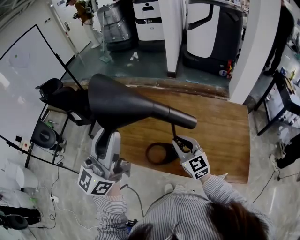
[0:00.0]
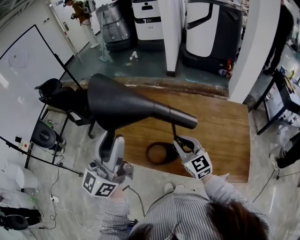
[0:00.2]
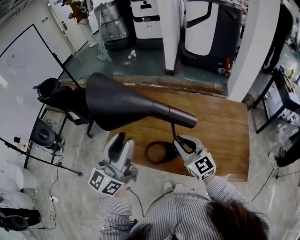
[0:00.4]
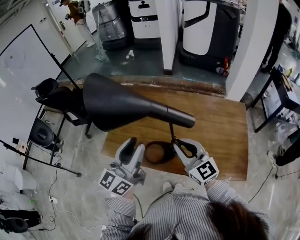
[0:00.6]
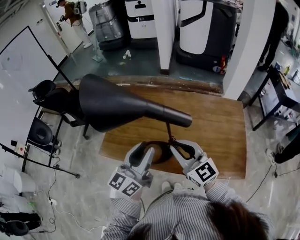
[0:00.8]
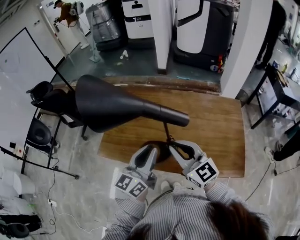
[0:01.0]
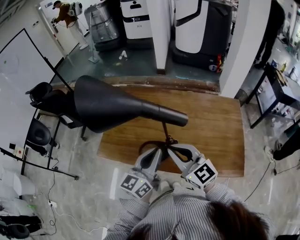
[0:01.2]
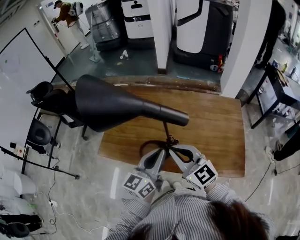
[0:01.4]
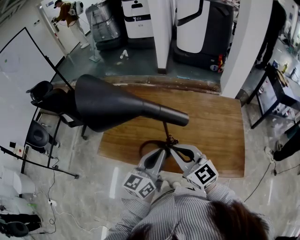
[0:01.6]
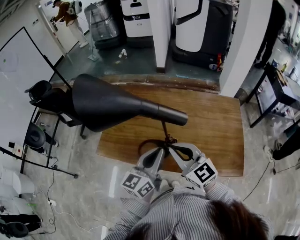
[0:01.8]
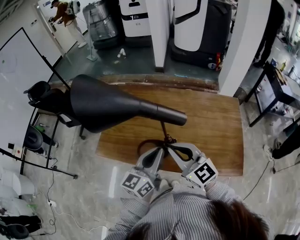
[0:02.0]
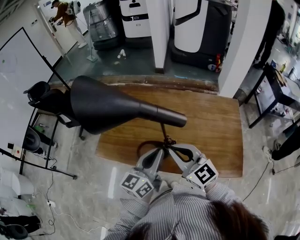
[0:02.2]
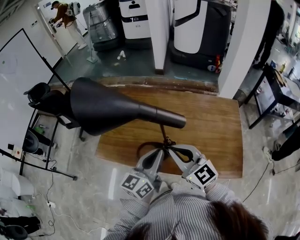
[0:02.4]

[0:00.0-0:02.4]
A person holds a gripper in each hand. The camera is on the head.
0:00.0 to 0:01.2: The left gripper heads downward and to the right, covering approximately 25 cm, and turns by roughly 30 degrees, while the right gripper is displaced backward and upward by some 10 cm.
0:01.2 to 0:02.4: The grippers stay close to where they were, moving slightly.

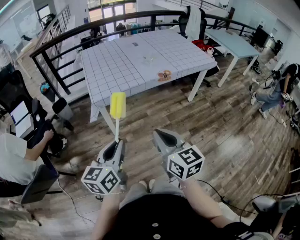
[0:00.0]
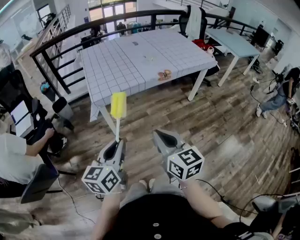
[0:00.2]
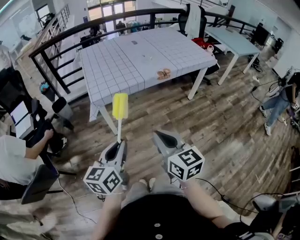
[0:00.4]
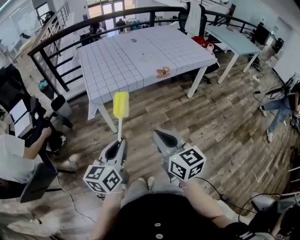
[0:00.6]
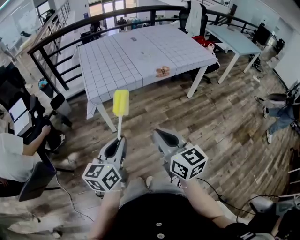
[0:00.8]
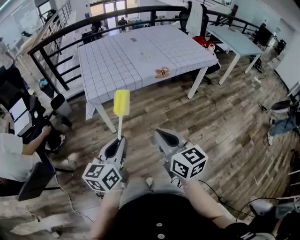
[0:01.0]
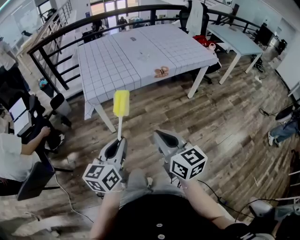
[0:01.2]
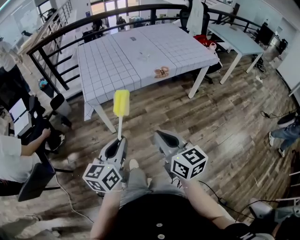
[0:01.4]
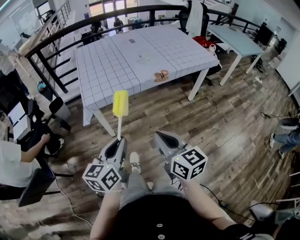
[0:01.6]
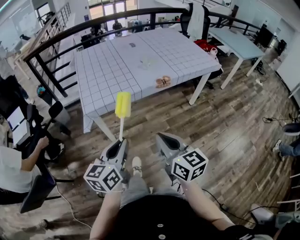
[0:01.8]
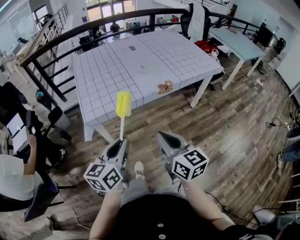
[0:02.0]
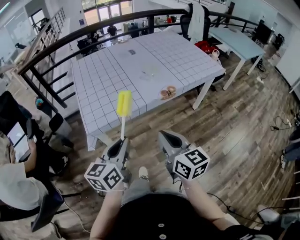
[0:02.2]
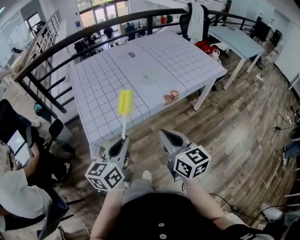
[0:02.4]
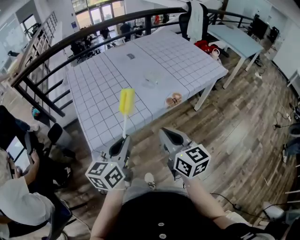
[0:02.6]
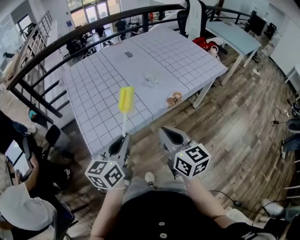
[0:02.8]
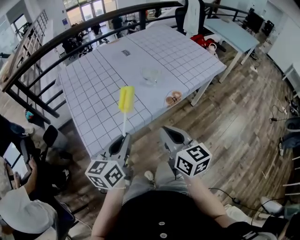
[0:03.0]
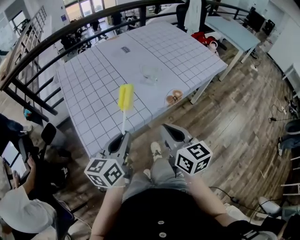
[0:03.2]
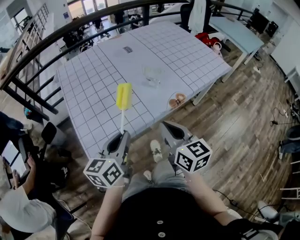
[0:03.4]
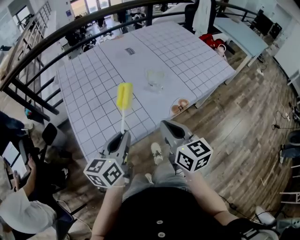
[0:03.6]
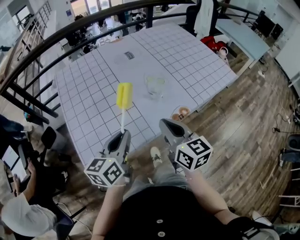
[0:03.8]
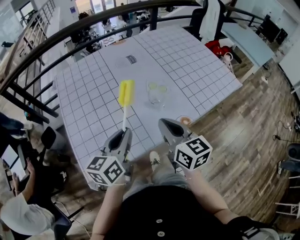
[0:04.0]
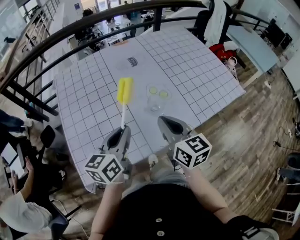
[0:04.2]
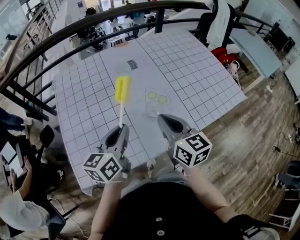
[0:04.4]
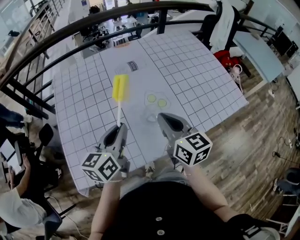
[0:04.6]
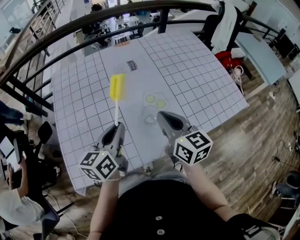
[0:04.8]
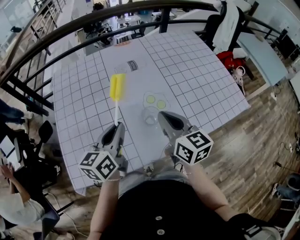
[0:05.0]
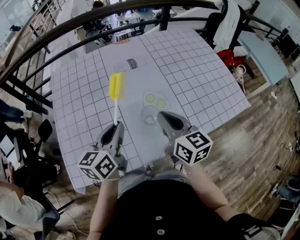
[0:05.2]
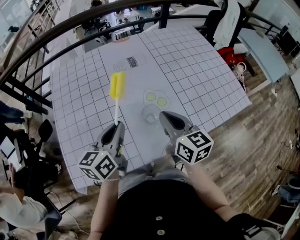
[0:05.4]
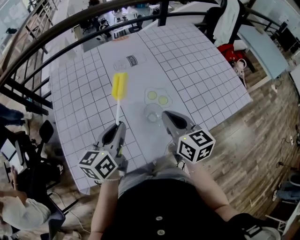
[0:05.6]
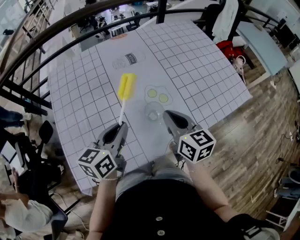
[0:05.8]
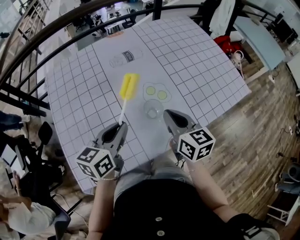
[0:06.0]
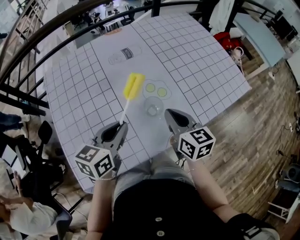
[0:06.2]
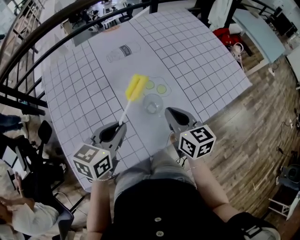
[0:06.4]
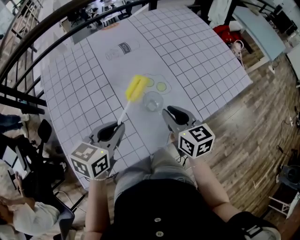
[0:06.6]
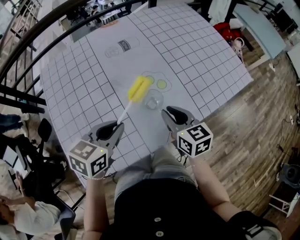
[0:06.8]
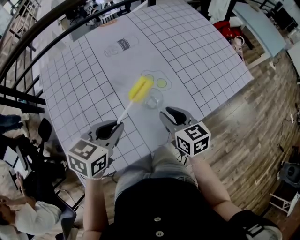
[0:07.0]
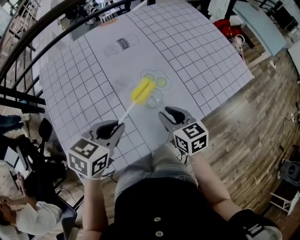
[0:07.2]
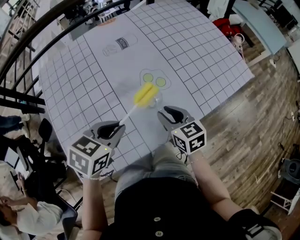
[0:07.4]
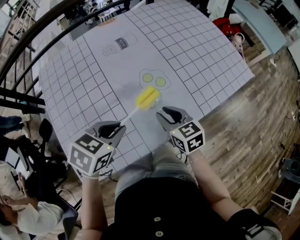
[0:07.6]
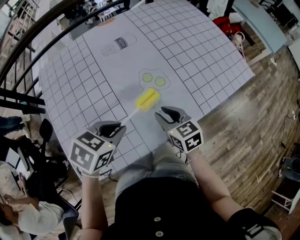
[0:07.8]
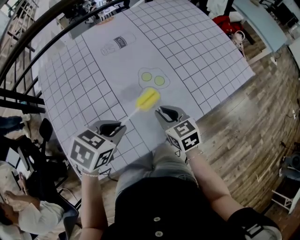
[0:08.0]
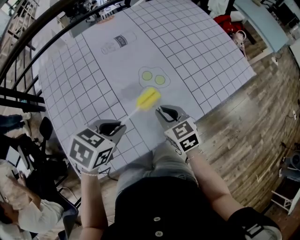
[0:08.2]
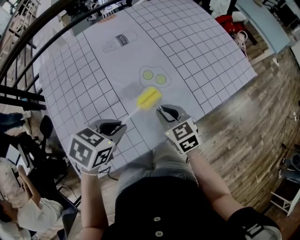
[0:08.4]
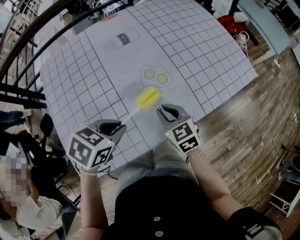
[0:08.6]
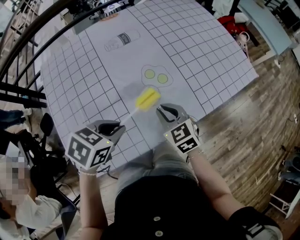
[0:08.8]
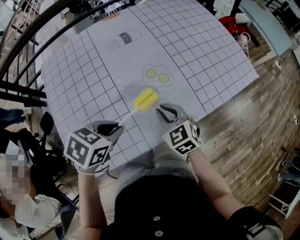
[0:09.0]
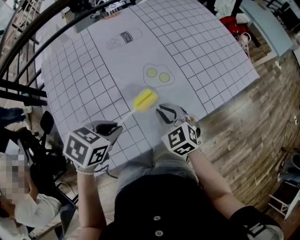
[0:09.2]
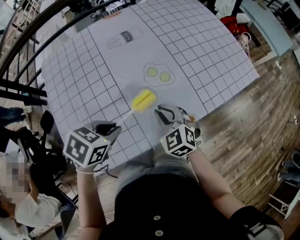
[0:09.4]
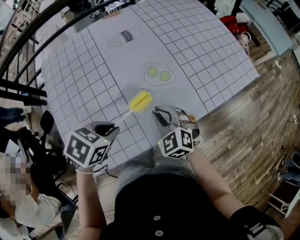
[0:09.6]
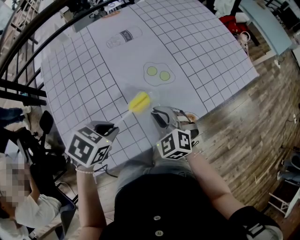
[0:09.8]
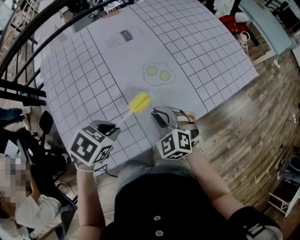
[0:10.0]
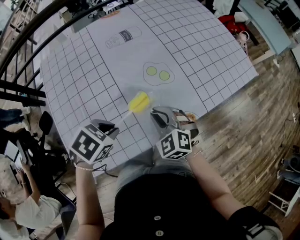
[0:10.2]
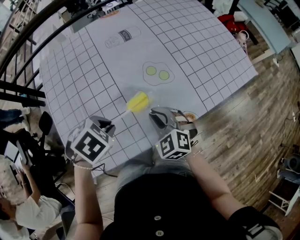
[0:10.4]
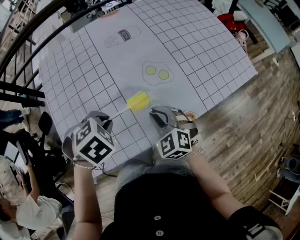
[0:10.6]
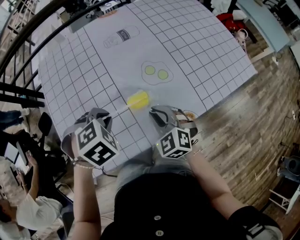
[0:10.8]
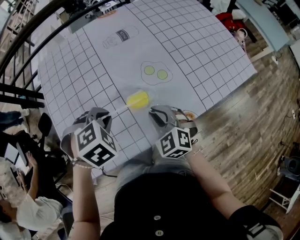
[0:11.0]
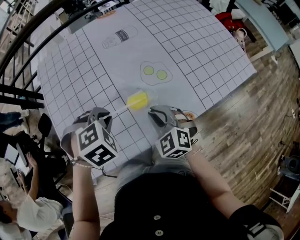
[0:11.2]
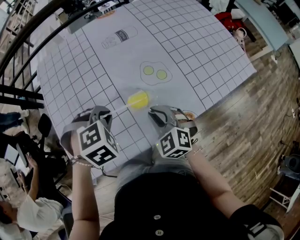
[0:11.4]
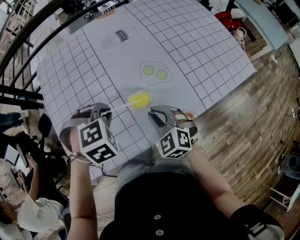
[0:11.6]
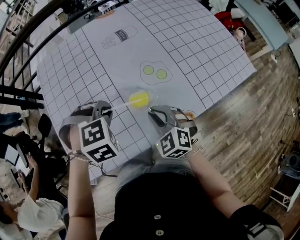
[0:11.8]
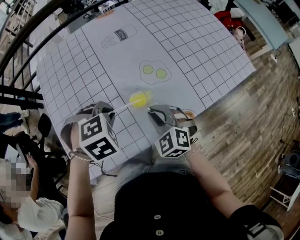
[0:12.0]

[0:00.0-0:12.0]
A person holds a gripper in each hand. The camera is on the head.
0:00.0 to 0:01.6: Both grippers travel together forward and to the right, roughly 10 cm.
0:01.6 to 0:03.0: Both grippers travel together forward, some 30 cm.
0:03.0 to 0:04.4: Both grippers travel together forward, approximately 25 cm.
0:04.4 to 0:06.0: The right gripper ends up approximately 10 cm from where it was.
0:06.0 to 0:07.6: The left gripper turns by about 40 degrees. The right gripper heads downward, covering about 10 cm, and opens up.
0:07.6 to 0:09.0: The right gripper rotates about 30 degrees.
0:09.0 to 0:10.4: The left gripper changes its angle by approximately 20 degrees.
0:10.4 to 0:12.0: The left gripper rotates about 30 degrees.

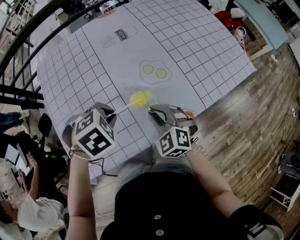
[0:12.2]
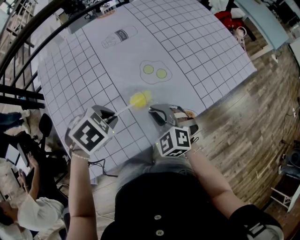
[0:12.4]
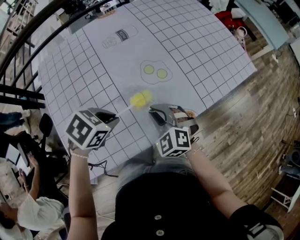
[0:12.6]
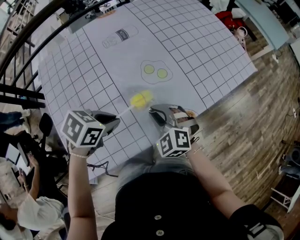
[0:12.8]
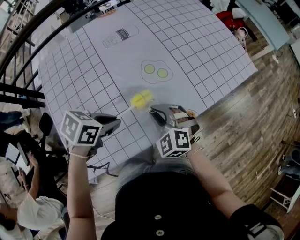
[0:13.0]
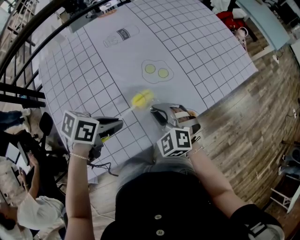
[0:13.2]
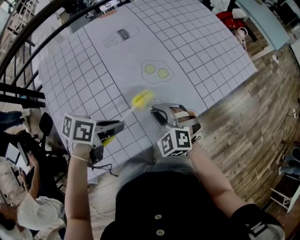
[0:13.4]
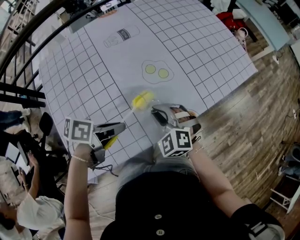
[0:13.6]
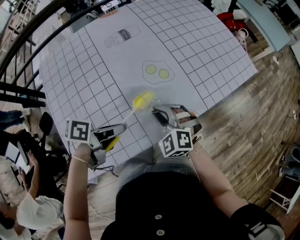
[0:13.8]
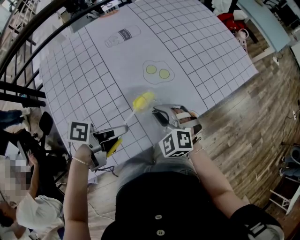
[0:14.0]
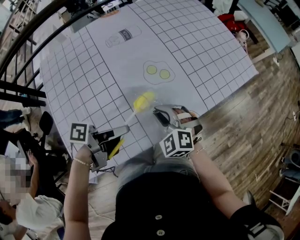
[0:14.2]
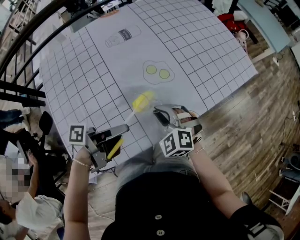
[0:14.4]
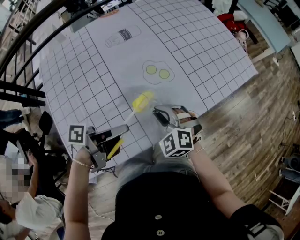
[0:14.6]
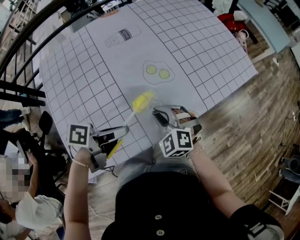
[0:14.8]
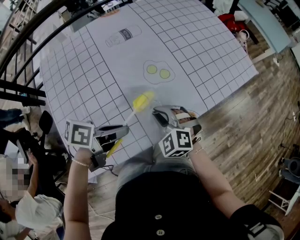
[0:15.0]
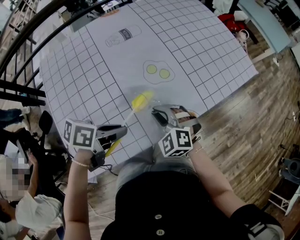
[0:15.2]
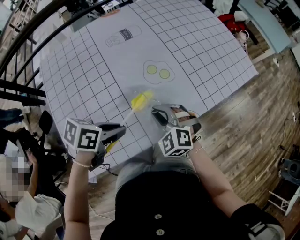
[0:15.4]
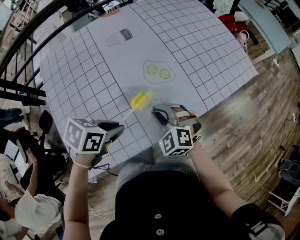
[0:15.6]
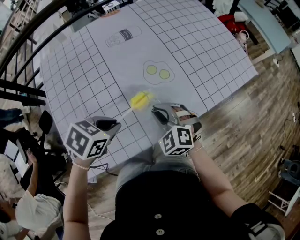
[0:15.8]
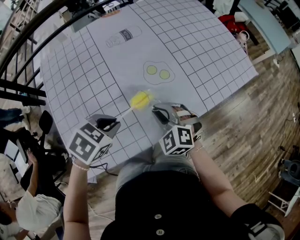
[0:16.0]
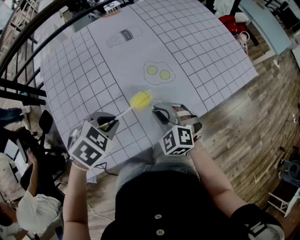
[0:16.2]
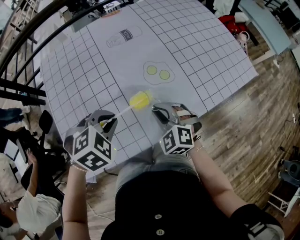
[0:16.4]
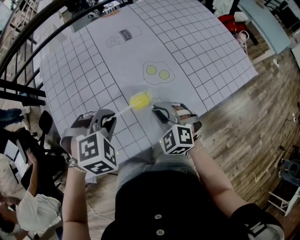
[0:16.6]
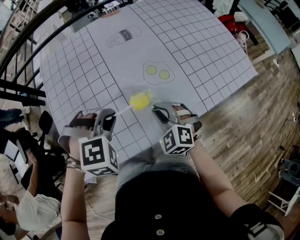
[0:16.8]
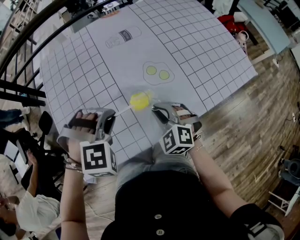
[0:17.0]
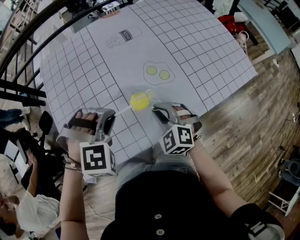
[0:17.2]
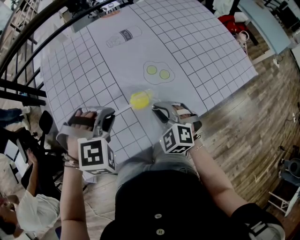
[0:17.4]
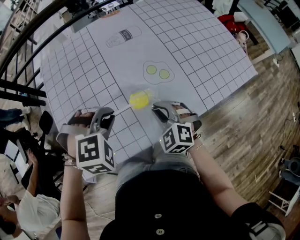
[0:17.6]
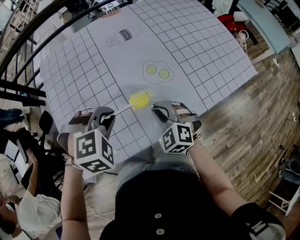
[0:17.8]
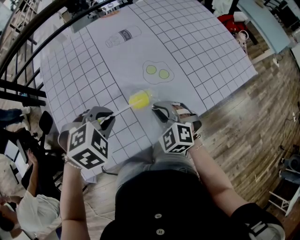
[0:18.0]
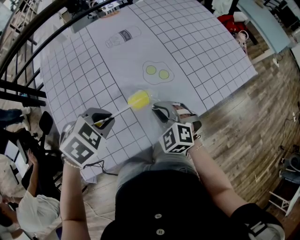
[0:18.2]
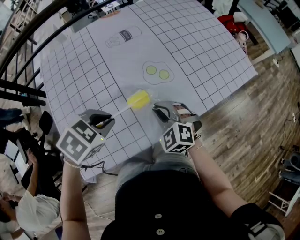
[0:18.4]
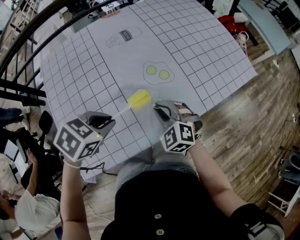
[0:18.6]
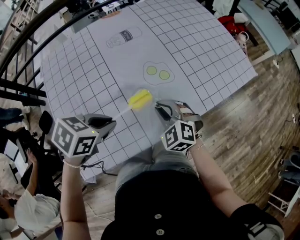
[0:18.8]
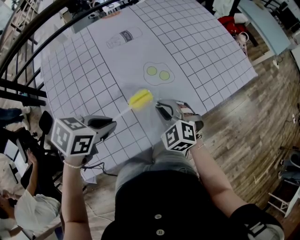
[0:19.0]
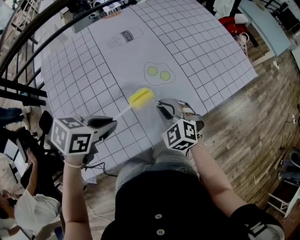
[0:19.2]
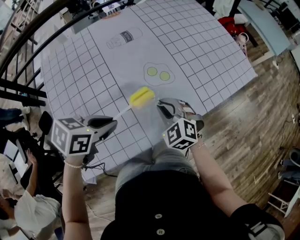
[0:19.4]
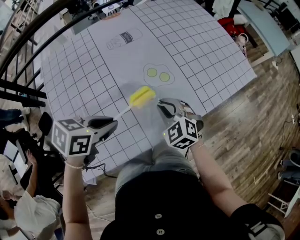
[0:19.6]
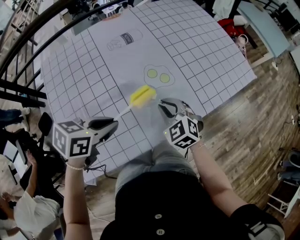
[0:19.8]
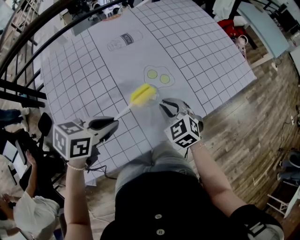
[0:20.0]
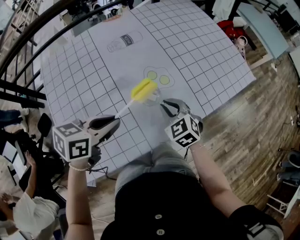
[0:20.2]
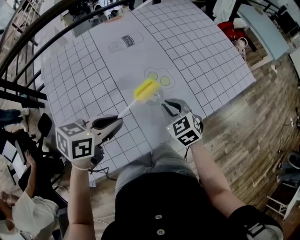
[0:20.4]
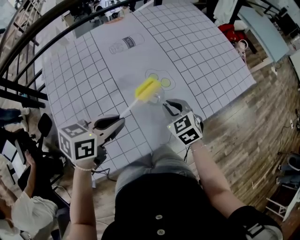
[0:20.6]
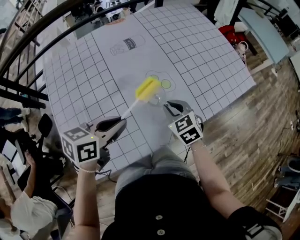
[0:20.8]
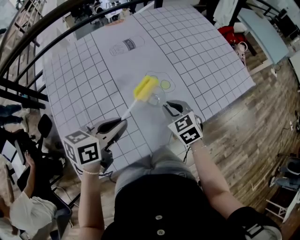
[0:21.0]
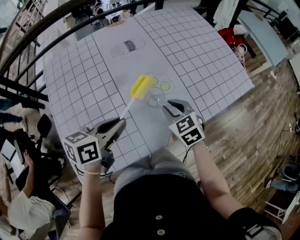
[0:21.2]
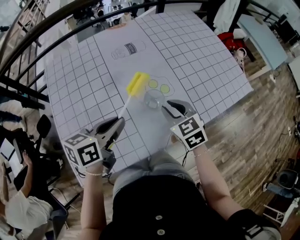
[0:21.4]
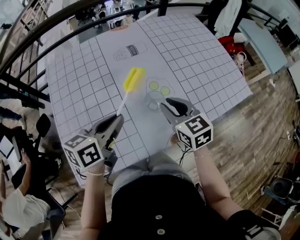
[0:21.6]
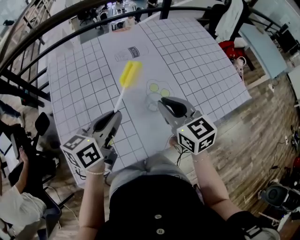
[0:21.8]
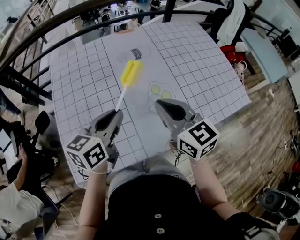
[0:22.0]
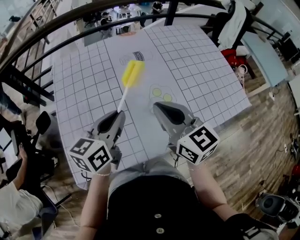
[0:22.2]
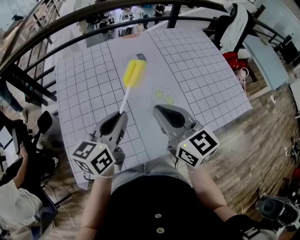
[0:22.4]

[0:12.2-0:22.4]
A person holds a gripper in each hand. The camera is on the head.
0:12.2 to 0:13.6: The left gripper angles its fingers upward, by approximately 50 degrees.
0:15.2 to 0:16.6: The left gripper rolls clockwise, seen from behind, by roughly 80 degrees.
0:18.0 to 0:19.4: The left gripper rotates around the line of its fingers by some 50 degrees, counterclockwise from behind.
0:19.4 to 0:21.0: The right gripper changes its angle by approximately 20 degrees, while the left gripper turns by roughly 30 degrees.
0:21.0 to 0:22.4: The left gripper goes roughly 5 cm upward, and turns by roughly 30 degrees. The right gripper is displaced upward by roughly 20 cm, and points its fingers roughly 40 degrees further upward.
